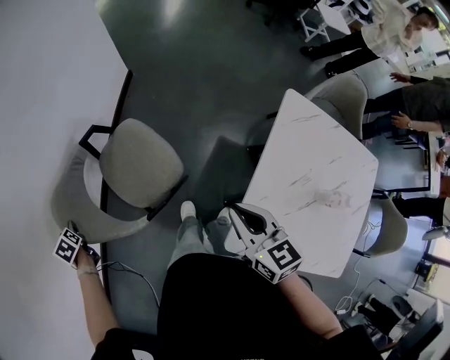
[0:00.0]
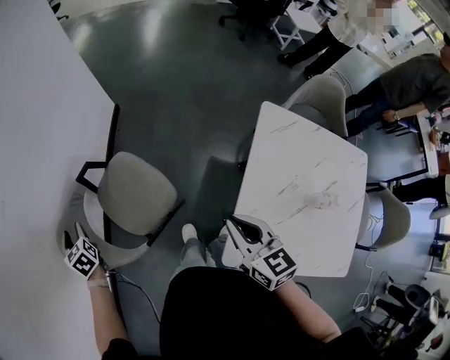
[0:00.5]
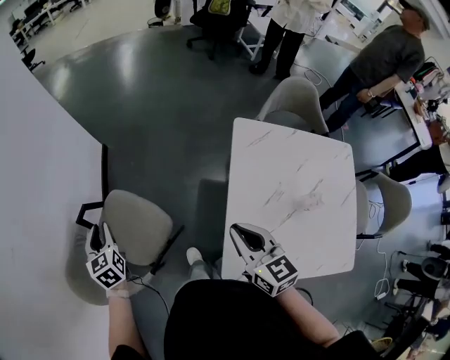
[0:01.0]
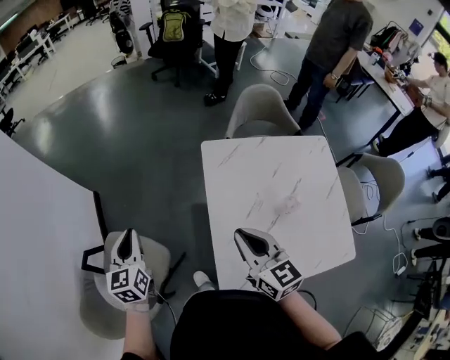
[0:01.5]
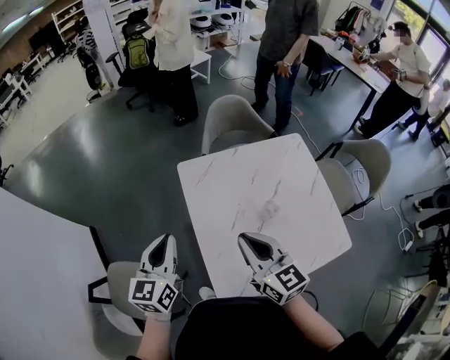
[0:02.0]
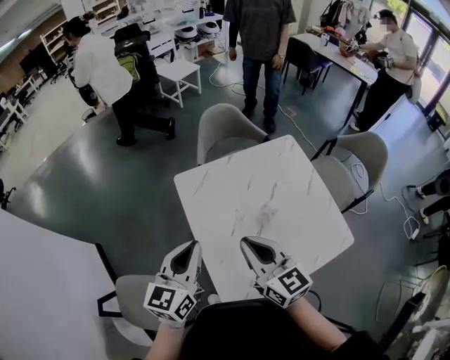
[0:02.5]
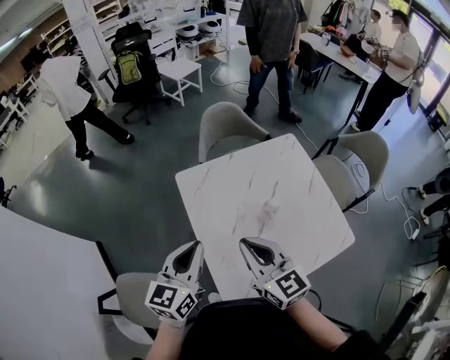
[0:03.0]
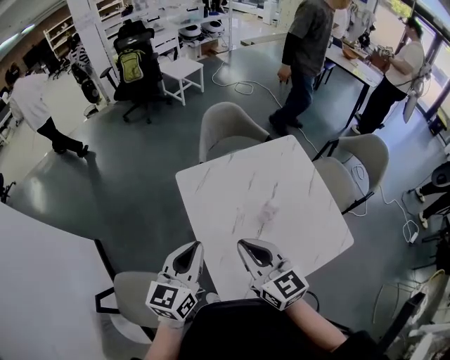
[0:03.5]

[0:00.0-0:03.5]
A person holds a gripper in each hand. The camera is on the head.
0:00.0 to 0:02.0: The left gripper shifts by about 80 cm, angles its fingers upward, by roughly 40 degrees, and closes up. Meanwhile the right gripper moves about 30 cm, and rotates approximately 40 degrees.
0:02.0 to 0:03.5: The left gripper moves to the right, roughly 10 cm.

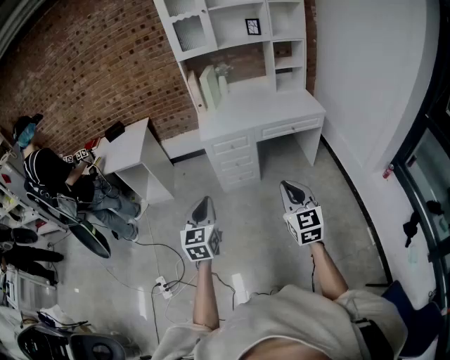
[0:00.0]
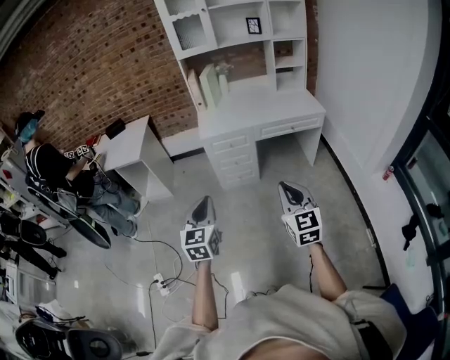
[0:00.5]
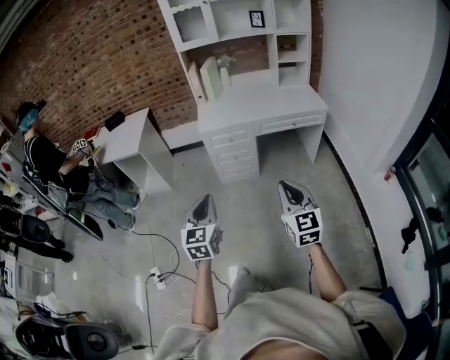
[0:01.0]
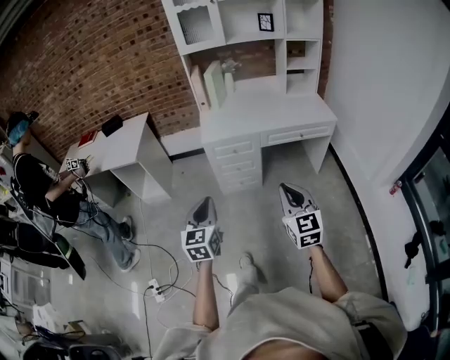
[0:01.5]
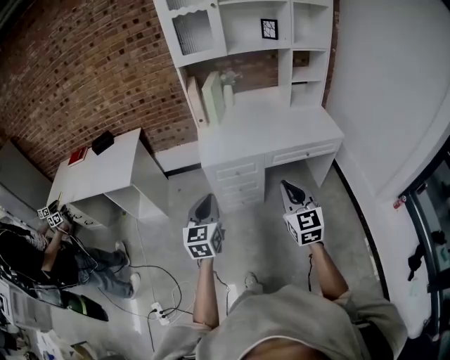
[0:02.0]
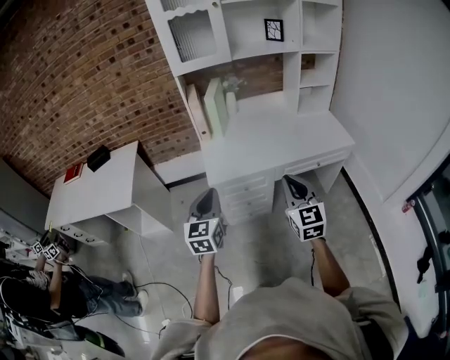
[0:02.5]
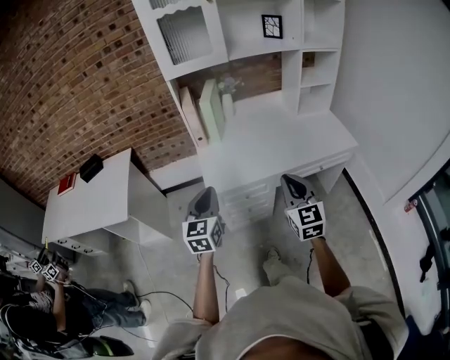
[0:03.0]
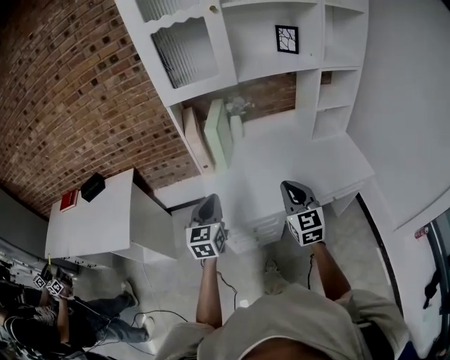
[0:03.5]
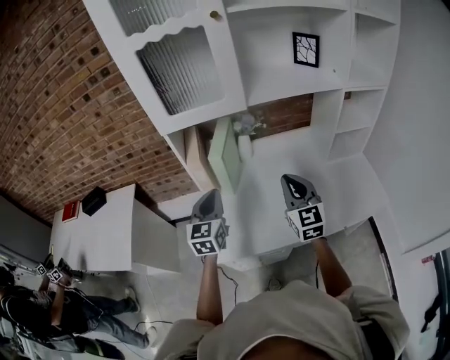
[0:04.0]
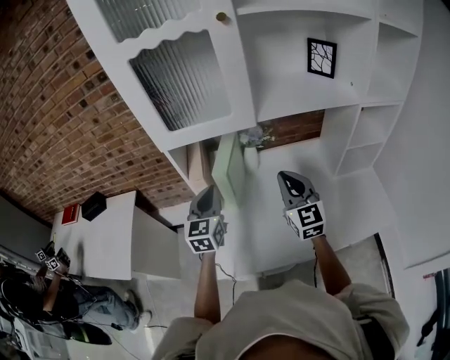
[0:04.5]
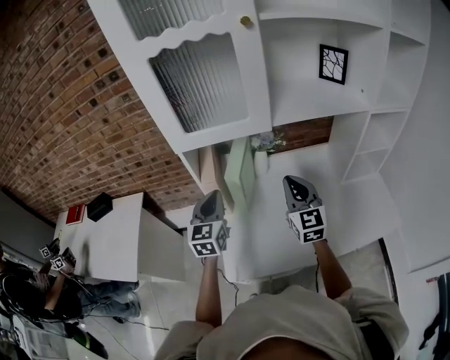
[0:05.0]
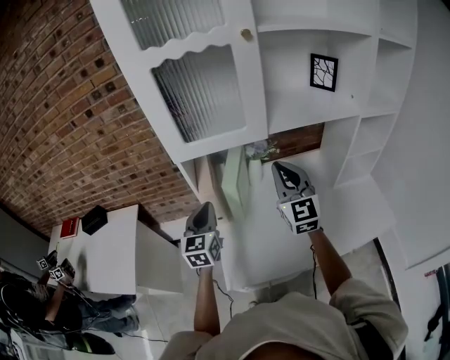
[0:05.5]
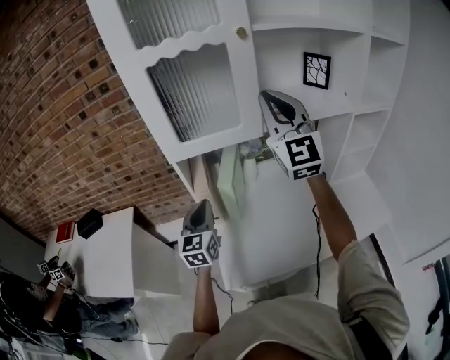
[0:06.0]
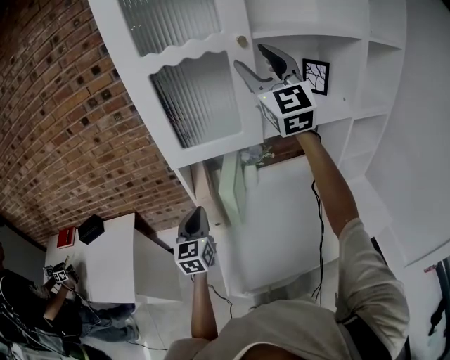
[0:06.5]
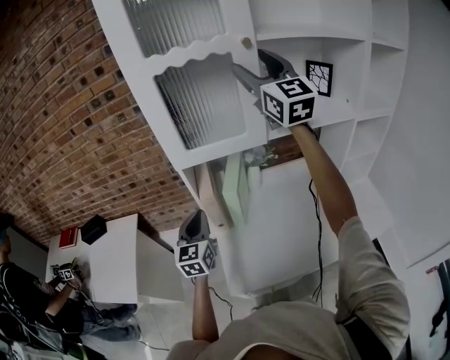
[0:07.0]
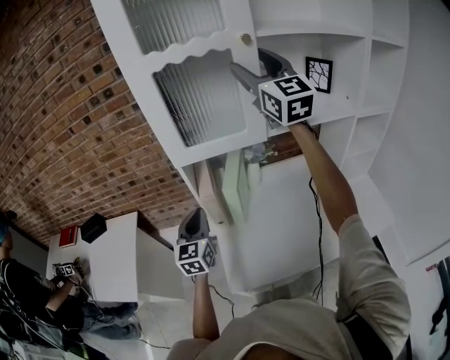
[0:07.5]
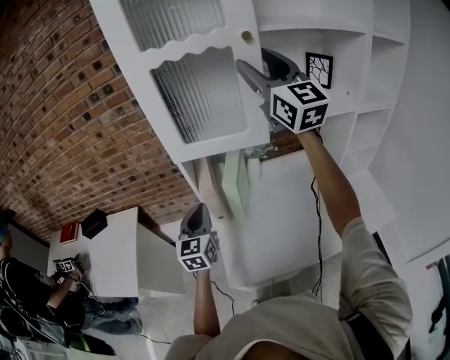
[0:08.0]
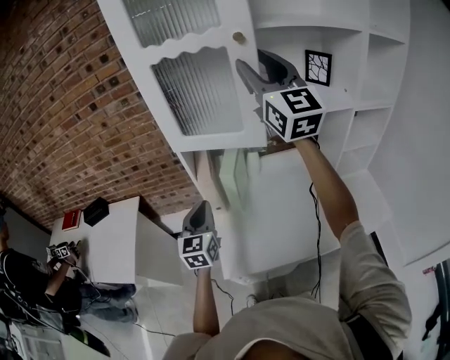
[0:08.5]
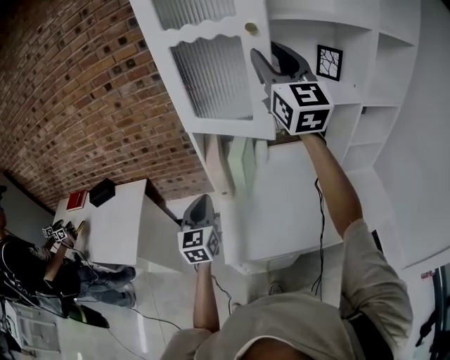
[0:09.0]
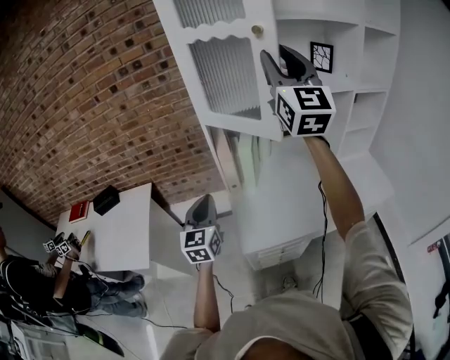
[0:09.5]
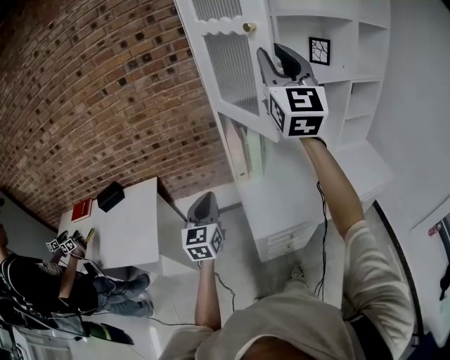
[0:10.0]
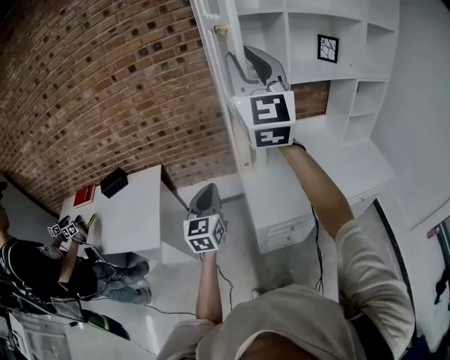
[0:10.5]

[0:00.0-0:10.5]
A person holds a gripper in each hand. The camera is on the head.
0:00.0 to 0:02.0: The grippers both shift forward by approximately 30 cm.
0:02.0 to 0:04.0: The two grippers travel together, forward, roughly 60 cm.
0:04.0 to 0:06.5: The right gripper heads upward and forward, covering roughly 40 cm, swivels approximately 30 degrees, and opens up; the left gripper shifts approximately 10 cm to the left and forward.
0:06.5 to 0:08.5: The left gripper moves about 5 cm.
0:08.5 to 0:10.5: The left gripper is displaced backward and to the left by some 25 cm. The right gripper shifts about 30 cm to the left and backward.

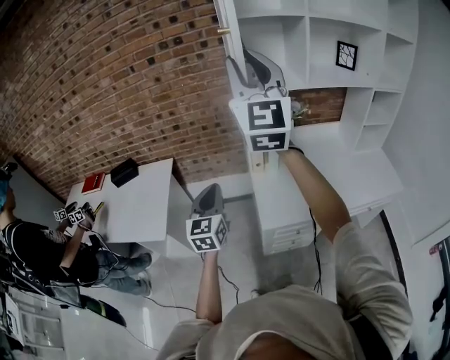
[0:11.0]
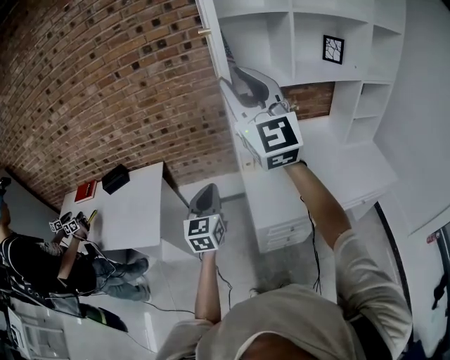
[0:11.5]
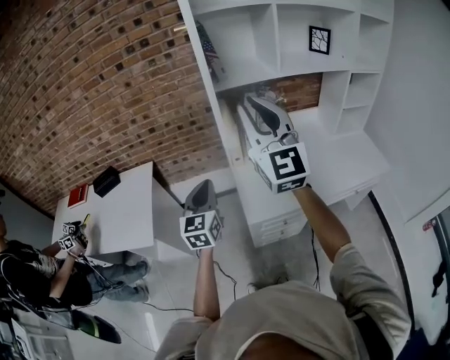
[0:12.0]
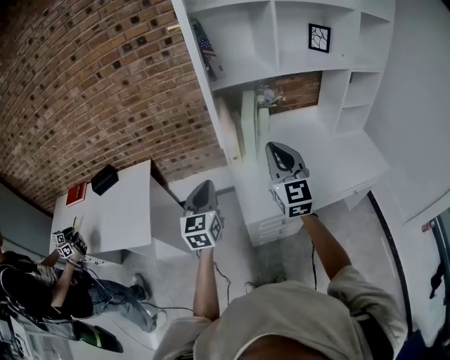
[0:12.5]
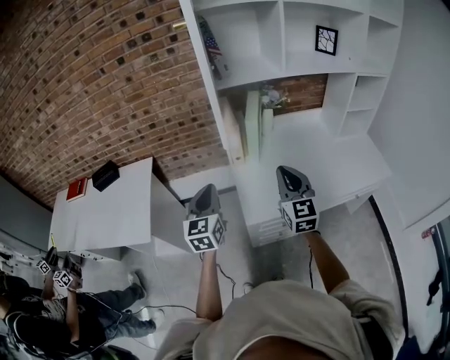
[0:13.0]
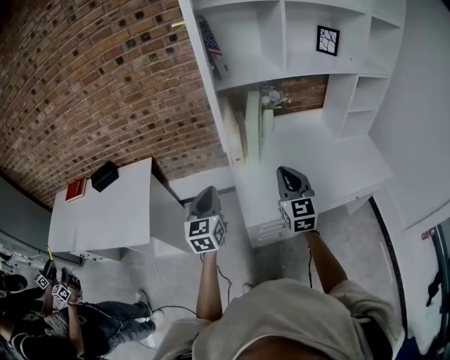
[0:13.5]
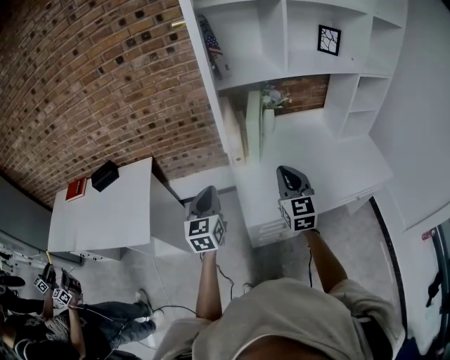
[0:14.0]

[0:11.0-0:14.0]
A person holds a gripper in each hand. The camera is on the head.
0:11.0 to 0:12.5: The right gripper moves downward and to the right, about 30 cm, rotates roughly 20 degrees, and closes. The left gripper goes approximately 5 cm to the right.
0:12.5 to 0:14.0: The right gripper goes roughly 10 cm downward.

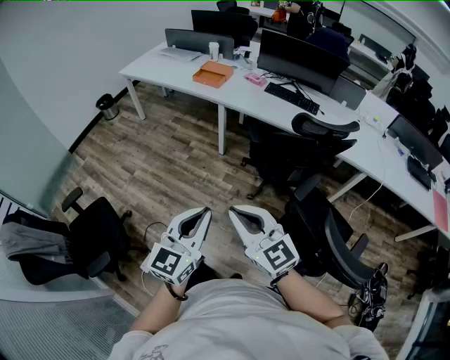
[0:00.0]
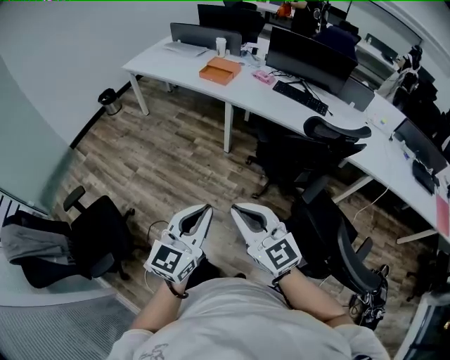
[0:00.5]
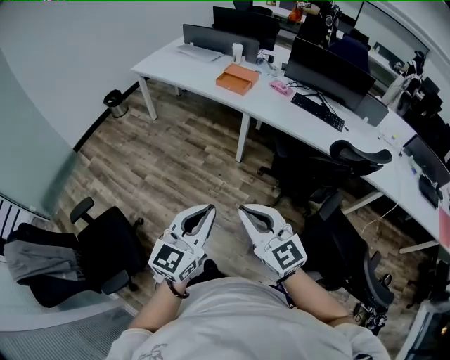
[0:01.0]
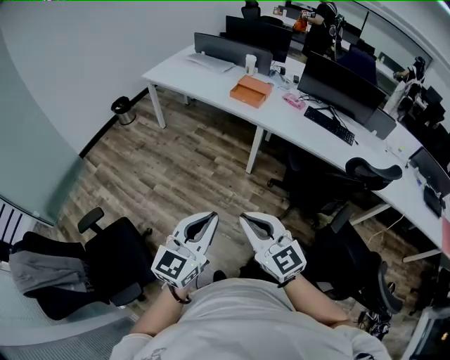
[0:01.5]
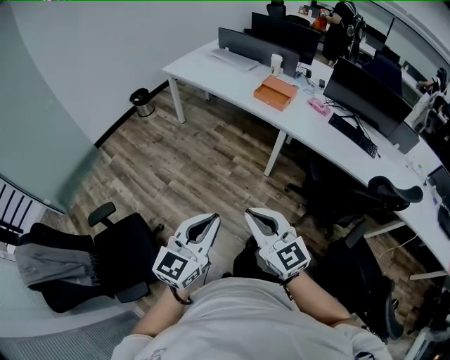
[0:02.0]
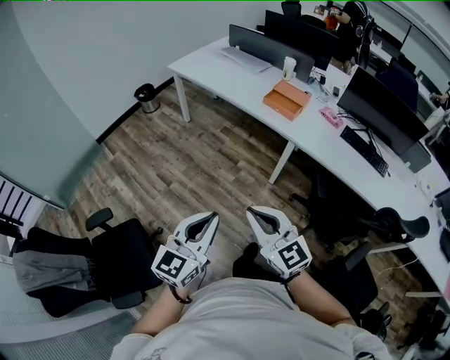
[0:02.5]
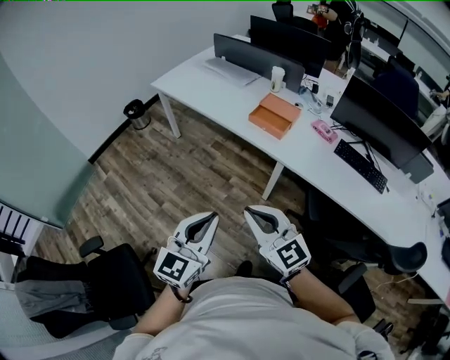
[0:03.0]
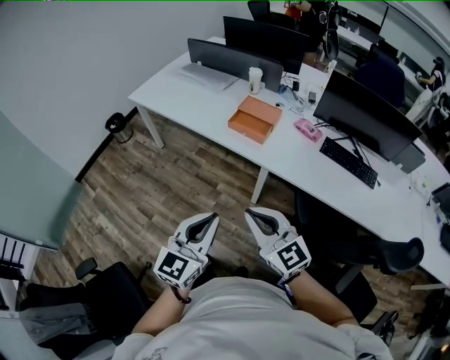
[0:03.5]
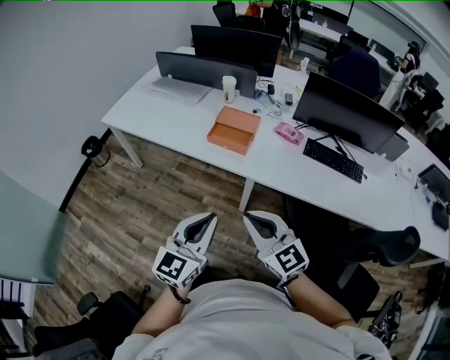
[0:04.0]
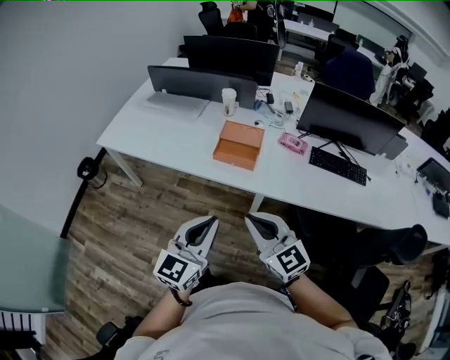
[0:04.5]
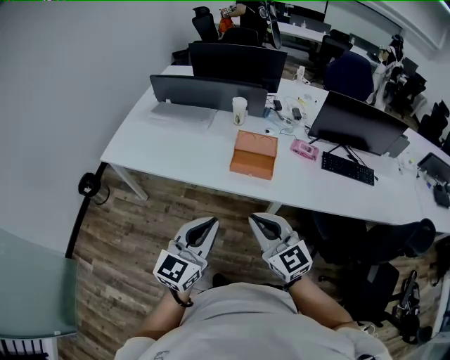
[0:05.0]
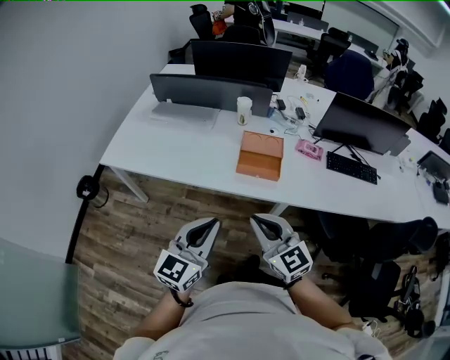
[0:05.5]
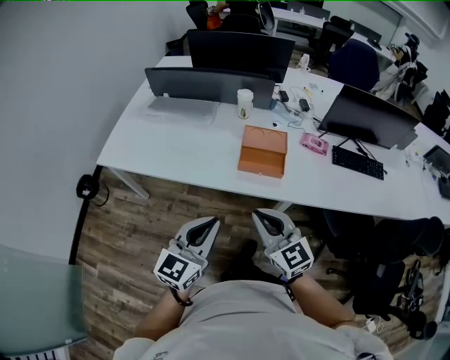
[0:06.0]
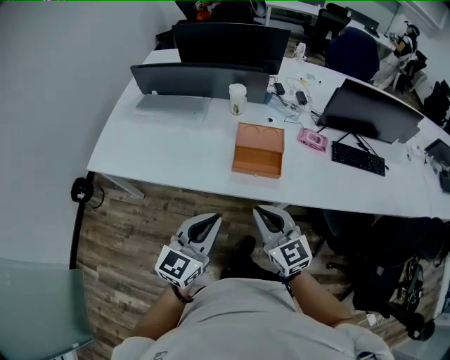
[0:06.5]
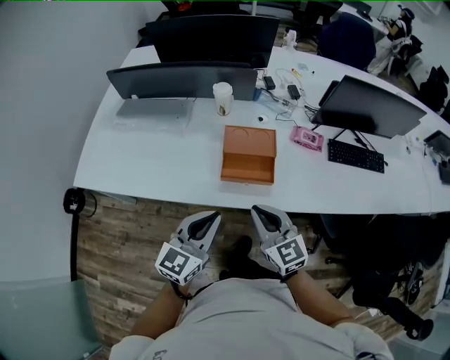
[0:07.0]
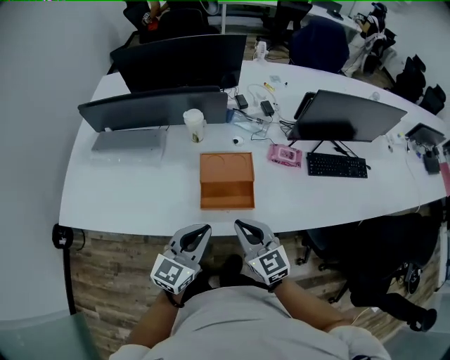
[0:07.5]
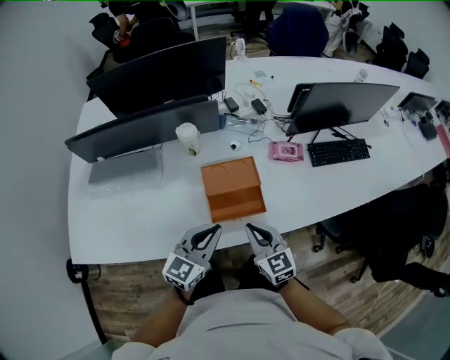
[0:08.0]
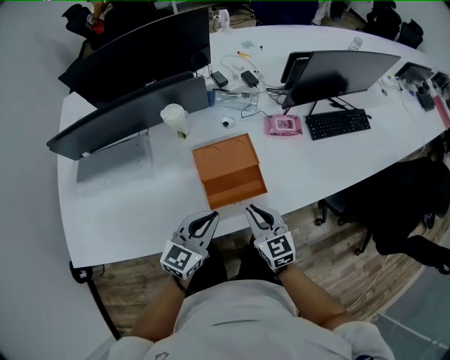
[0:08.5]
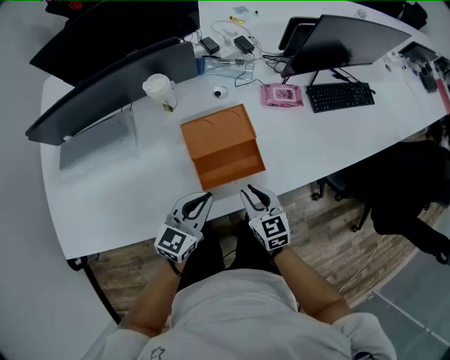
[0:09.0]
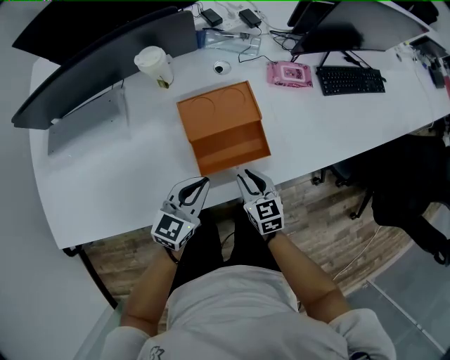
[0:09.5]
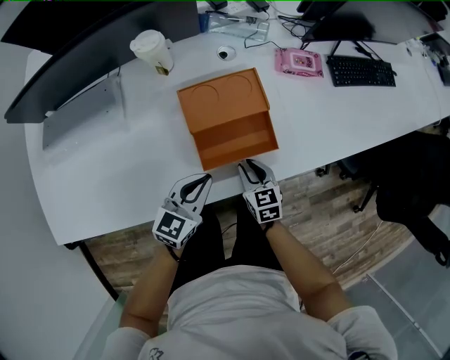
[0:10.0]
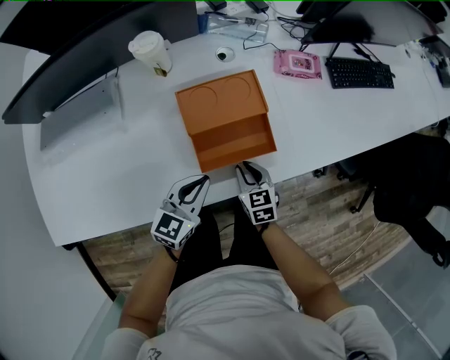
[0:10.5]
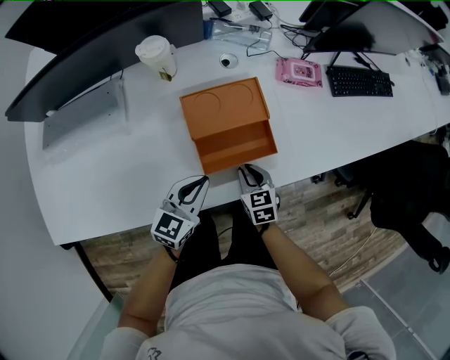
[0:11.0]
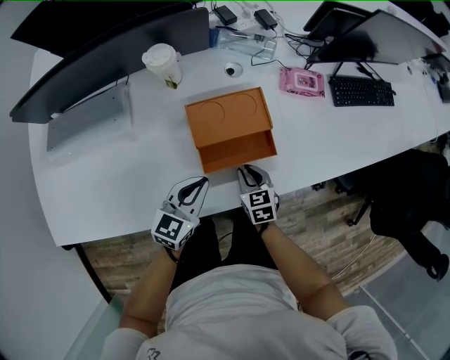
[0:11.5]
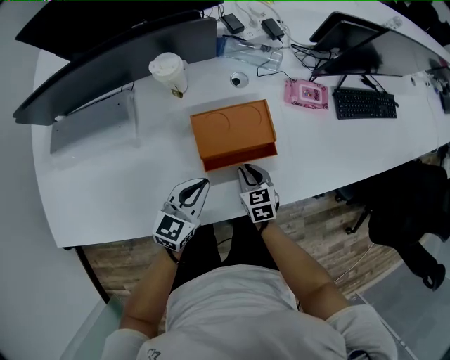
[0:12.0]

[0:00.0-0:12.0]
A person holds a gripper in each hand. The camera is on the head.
0:00.0 to 0:02.0: The right gripper is displaced forward and to the left by about 35 cm. The left gripper shifts some 35 cm to the left and forward.
0:02.0 to 0:04.0: Both grippers are carried forward, some 50 cm.
0:04.0 to 0:06.0: The grippers both shift to the left and forward by approximately 35 cm.
0:06.0 to 0:08.0: The right gripper shifts by roughly 30 cm, and turns by some 30 degrees; the left gripper moves approximately 35 cm, and swivels roughly 30 degrees.
0:08.0 to 0:10.0: The grippers both shift downward by roughly 25 cm. The right gripper rotates roughly 30 degrees, and opens its fingers.
0:10.0 to 0:12.0: Both grippers move forward, about 5 cm.
